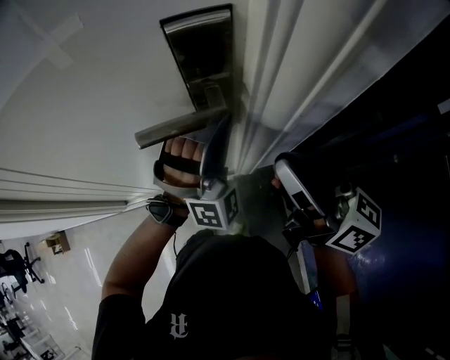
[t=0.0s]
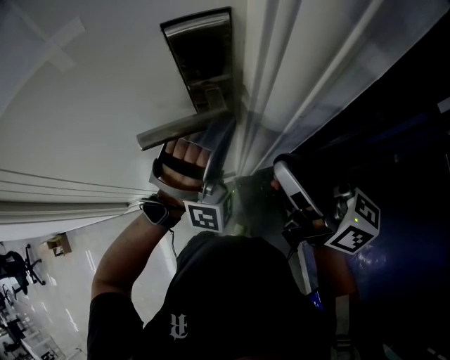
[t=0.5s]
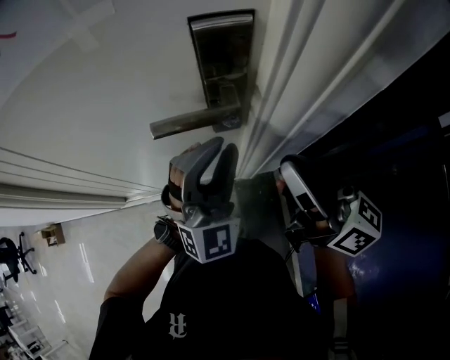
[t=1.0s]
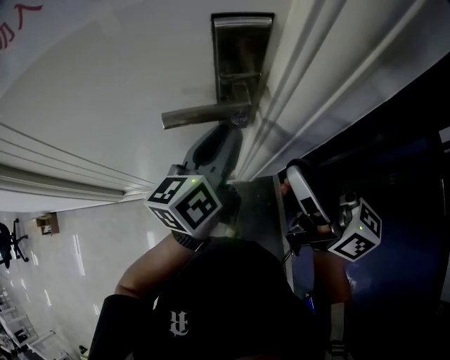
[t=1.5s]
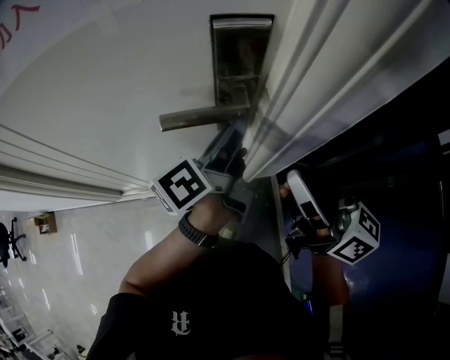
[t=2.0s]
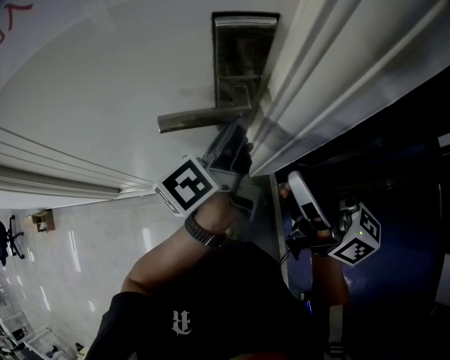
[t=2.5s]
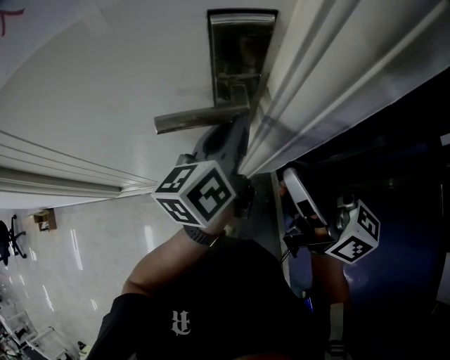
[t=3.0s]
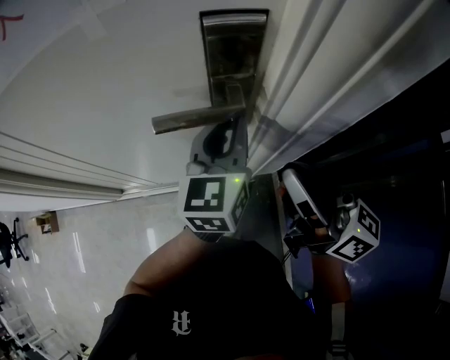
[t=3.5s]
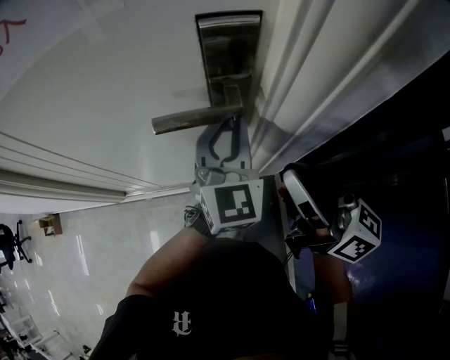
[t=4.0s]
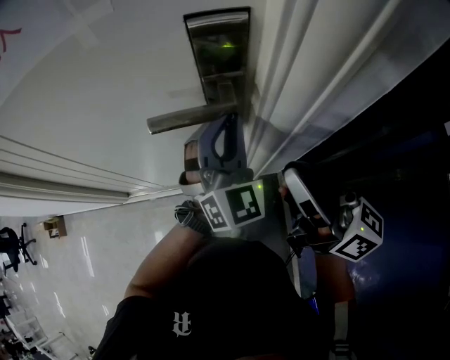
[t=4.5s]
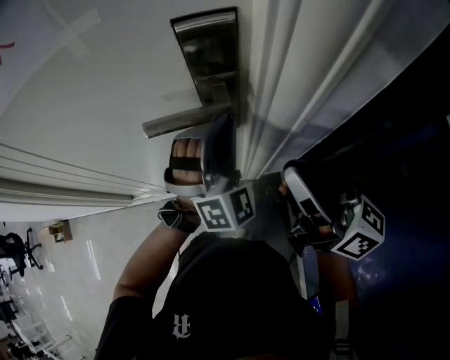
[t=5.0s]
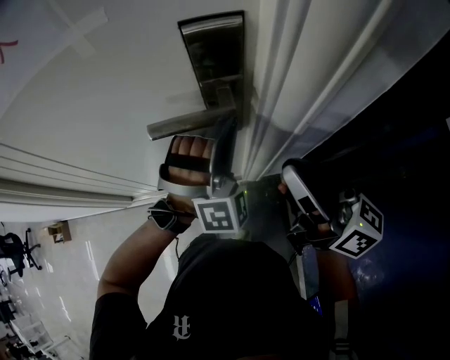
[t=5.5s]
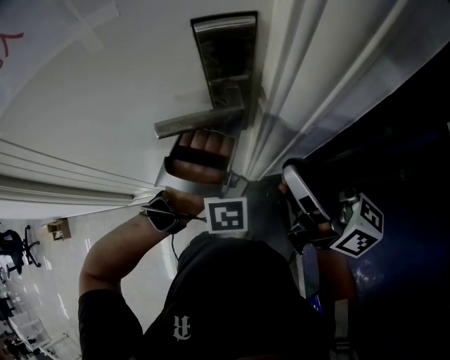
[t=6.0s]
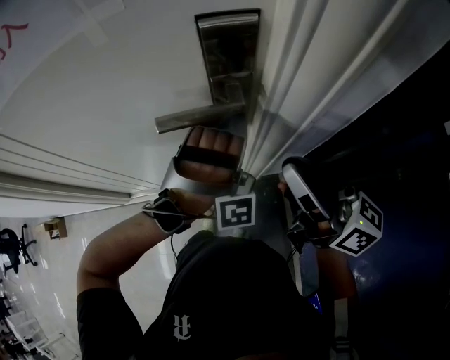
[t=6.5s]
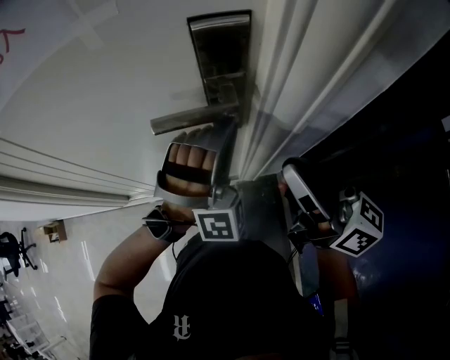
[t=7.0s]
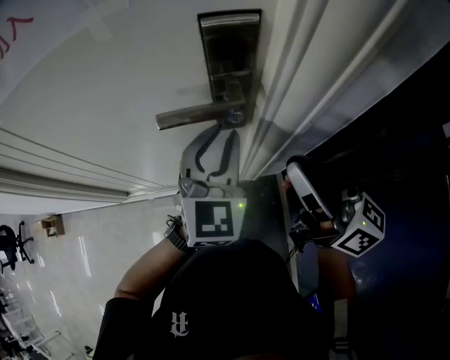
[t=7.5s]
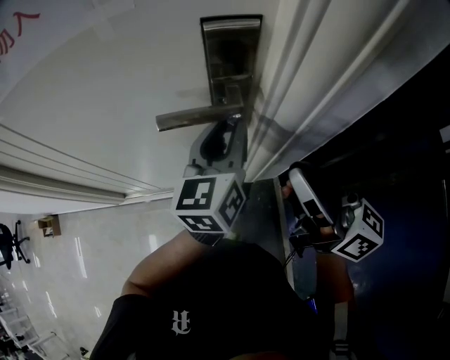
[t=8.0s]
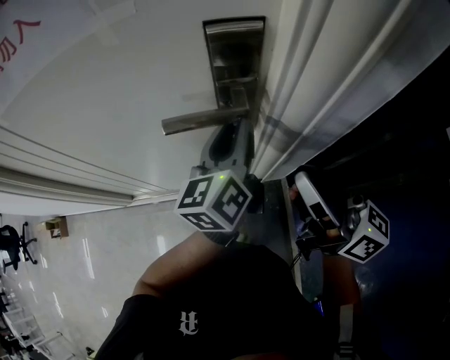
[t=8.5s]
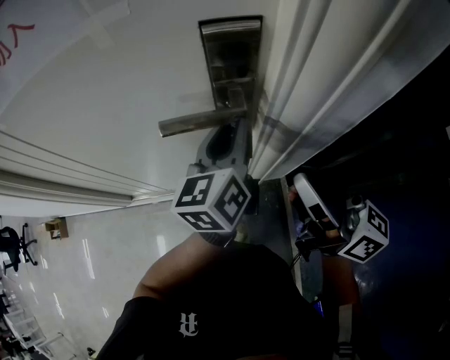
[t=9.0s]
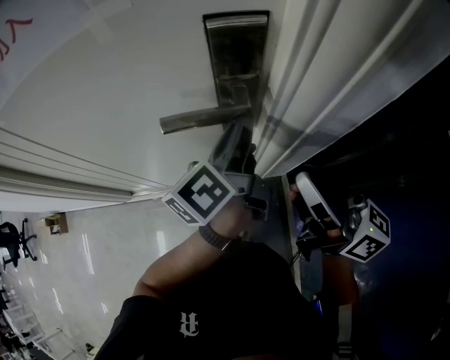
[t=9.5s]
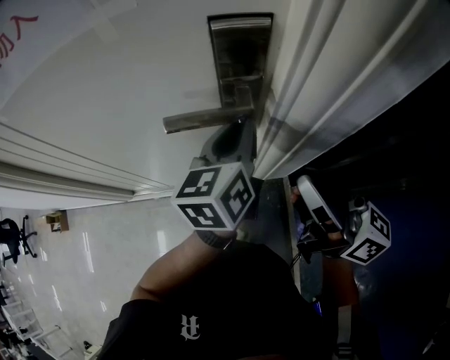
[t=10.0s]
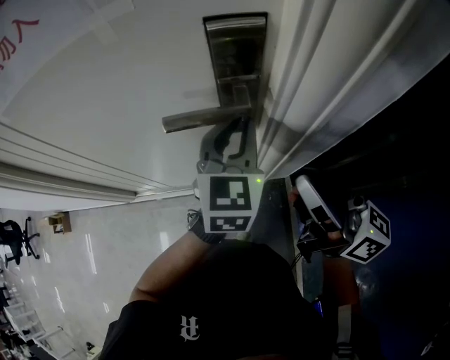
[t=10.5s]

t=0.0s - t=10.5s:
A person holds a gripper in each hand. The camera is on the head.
t=0.0s - t=2.0s: The left gripper rotates around the line of its fingers by about 150 degrees, counterclockwise from behind.
t=2.0s - t=4.0s: The left gripper rotates around the line of its fingers by approximately 80 degrees, clockwise from behind.
t=4.0s - t=6.5s: The left gripper twists roughly 90 degrees clockwise, seen from behind.
t=6.5s - t=8.5s: The left gripper twists roughly 140 degrees counterclockwise, seen from behind.
t=8.5s - t=10.5s: The left gripper turns by some 40 degrees.

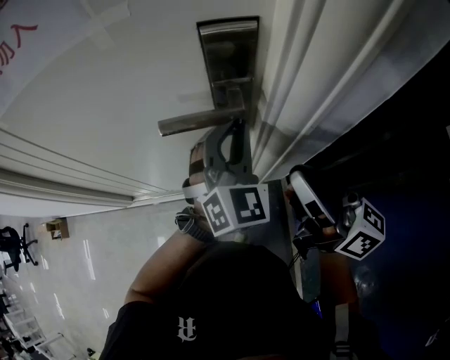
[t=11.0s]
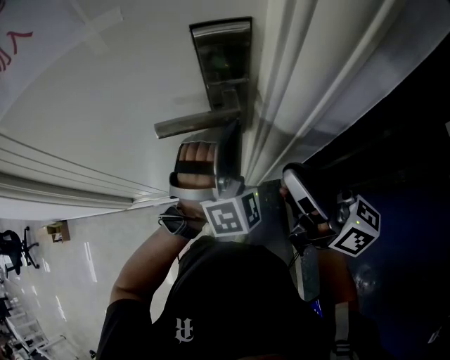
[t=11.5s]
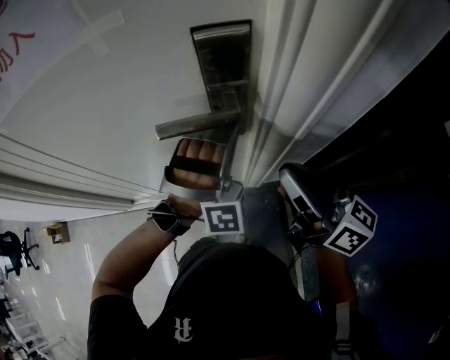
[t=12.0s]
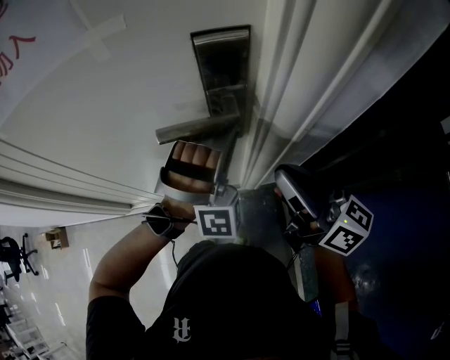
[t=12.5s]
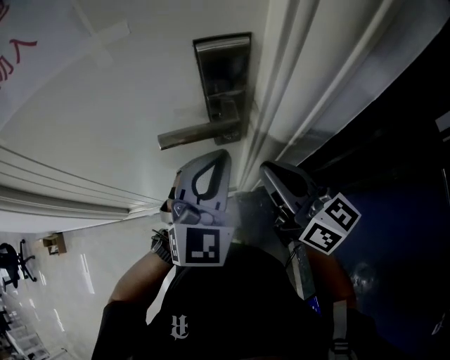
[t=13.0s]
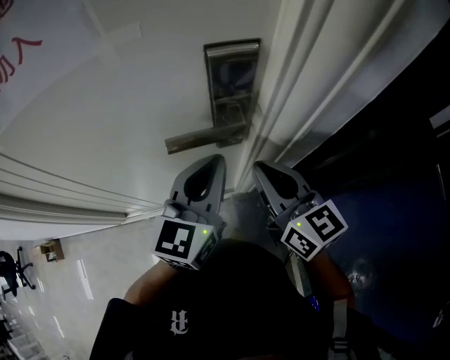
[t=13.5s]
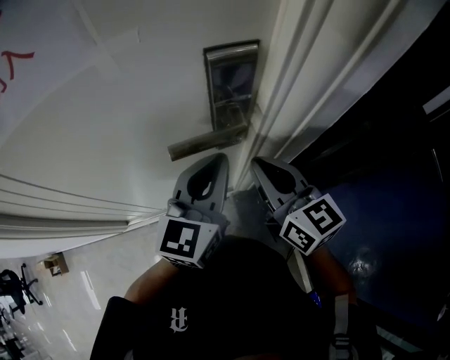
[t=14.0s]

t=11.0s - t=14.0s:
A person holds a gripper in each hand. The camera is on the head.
t=11.0s - t=12.5s: The left gripper twists roughly 60 degrees clockwise, seen from behind.
t=12.5s - t=14.0s: The left gripper travels to the left by roughly 5 cm, and twists roughly 90 degrees counterclockwise, seen from behind; the right gripper ends up roughly 5 cm from where it was, and changes its angle by approximately 30 degrees.

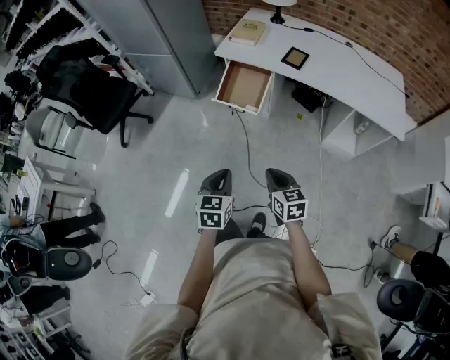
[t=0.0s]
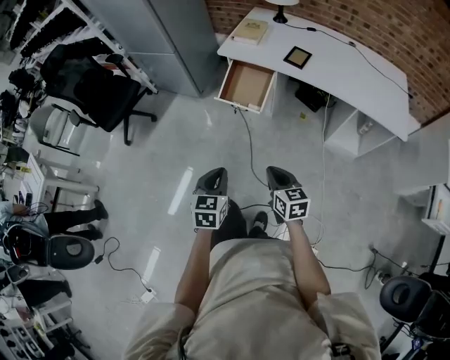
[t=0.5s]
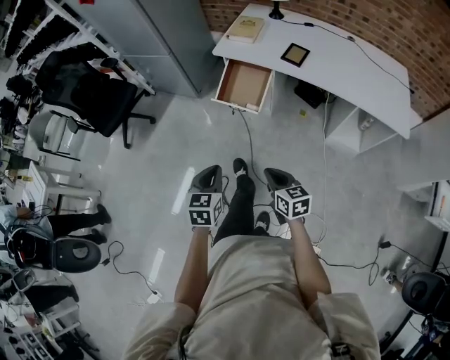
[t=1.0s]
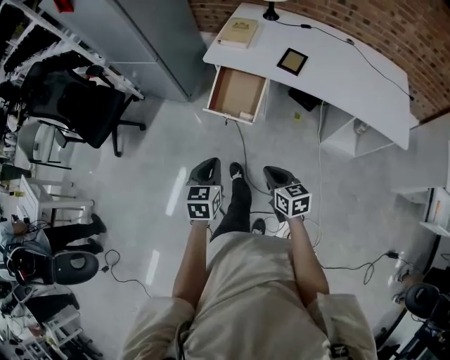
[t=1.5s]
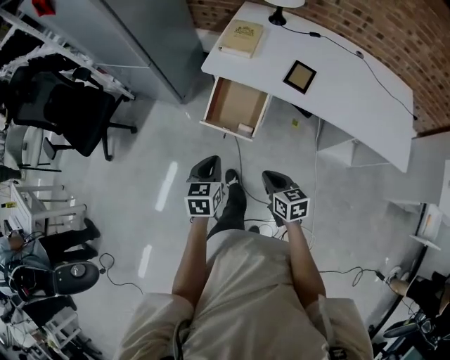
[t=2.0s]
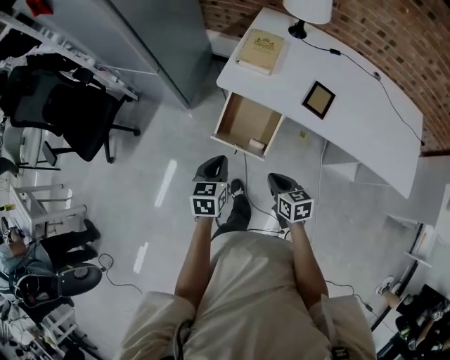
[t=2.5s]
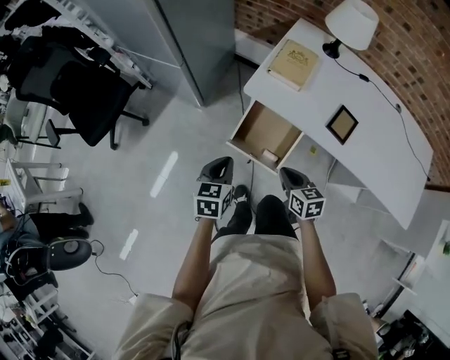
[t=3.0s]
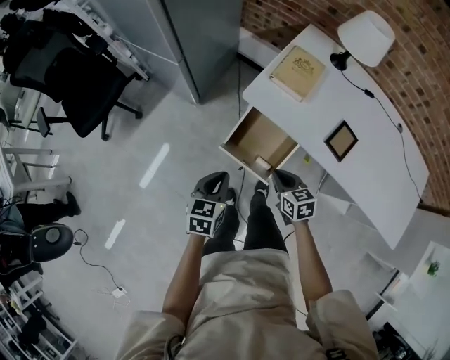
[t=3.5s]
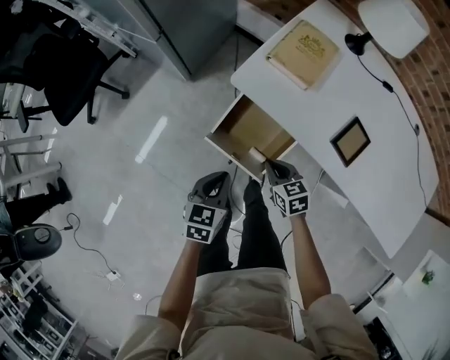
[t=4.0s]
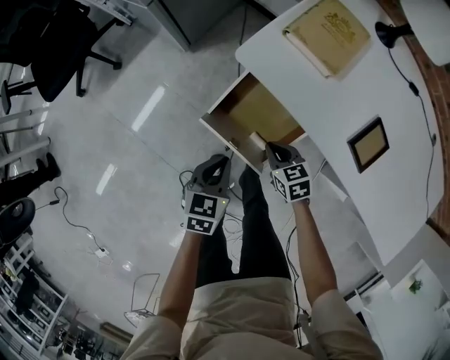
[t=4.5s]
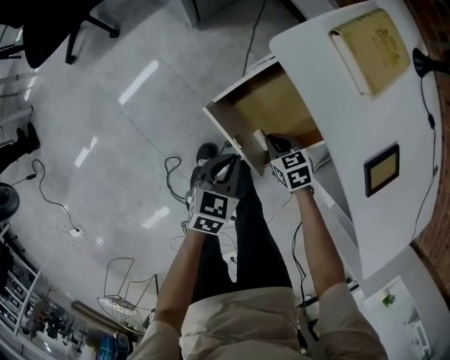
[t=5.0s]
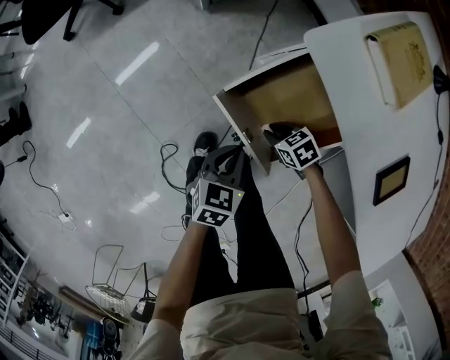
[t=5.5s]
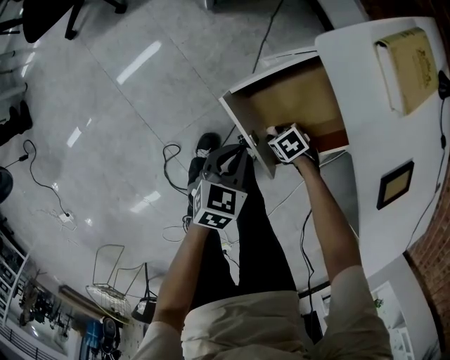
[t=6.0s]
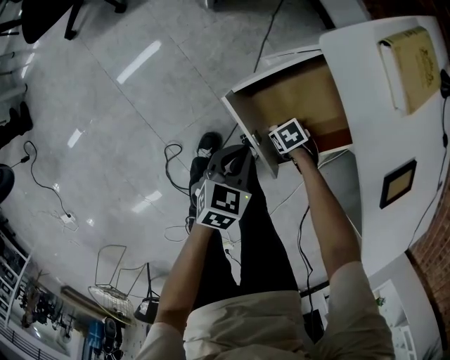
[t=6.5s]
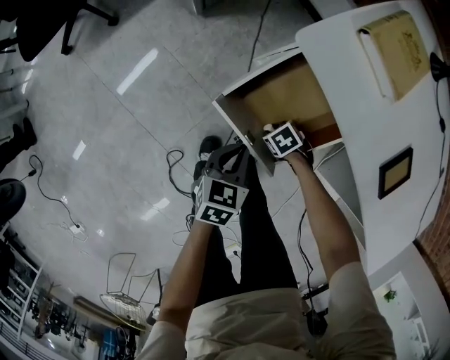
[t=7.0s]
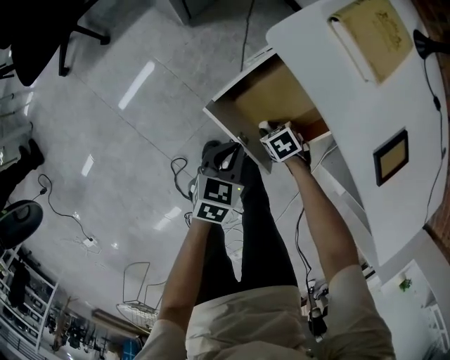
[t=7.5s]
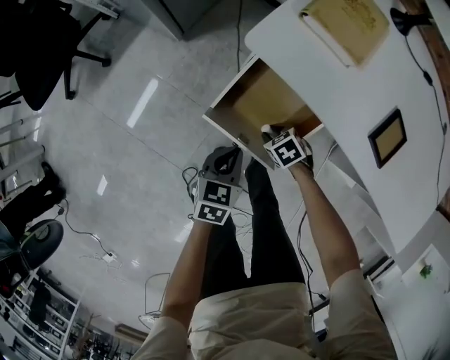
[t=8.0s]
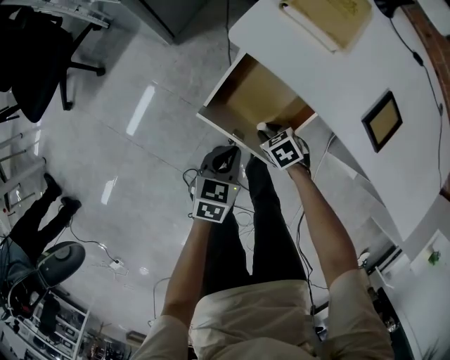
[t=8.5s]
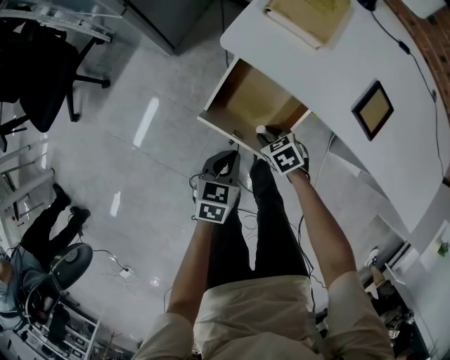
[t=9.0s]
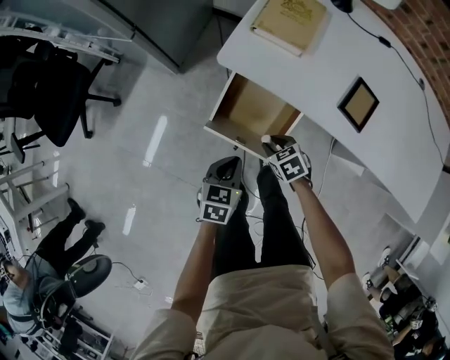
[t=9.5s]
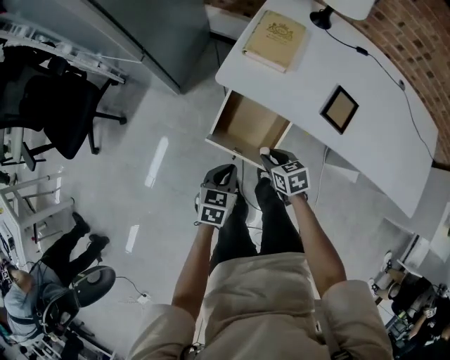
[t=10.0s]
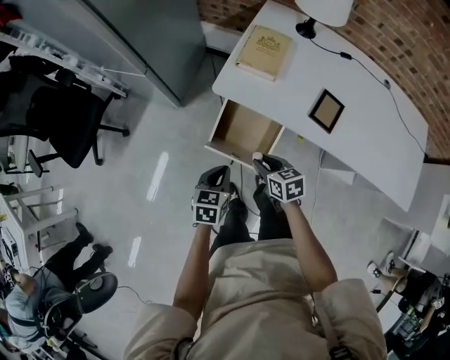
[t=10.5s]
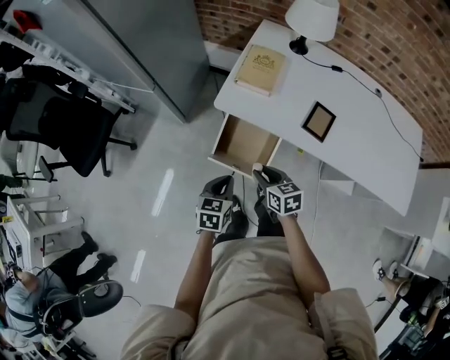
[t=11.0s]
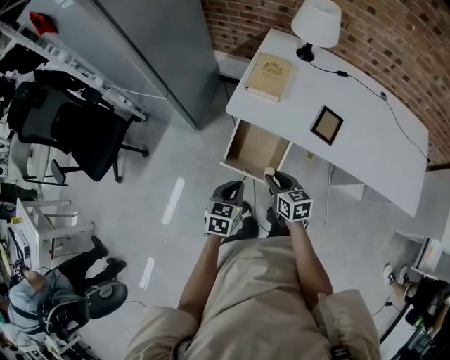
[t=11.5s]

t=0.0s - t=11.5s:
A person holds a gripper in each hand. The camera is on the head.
t=0.0s - t=2.0s: Both grippers travel together forward, roughly 25 cm.
t=2.0s - t=4.0s: The grippers both shift forward and downward by some 30 cm. The right gripper changes its angle by about 30 degrees.
t=4.0s - t=6.0s: The left gripper goes roughly 20 cm downward, while the right gripper travels downward by approximately 30 cm, turns by roughly 60 degrees, and opens.
t=6.0s - t=7.5s: The grippers move only a little.
t=7.5s - t=9.5s: The right gripper moves upward, about 20 cm, and rotates roughly 30 degrees. The left gripper is displaced upward by approximately 10 cm.
t=9.5s - t=11.5s: Both grippers travel together upward, roughly 20 cm. The right gripper turns by some 40 degrees.

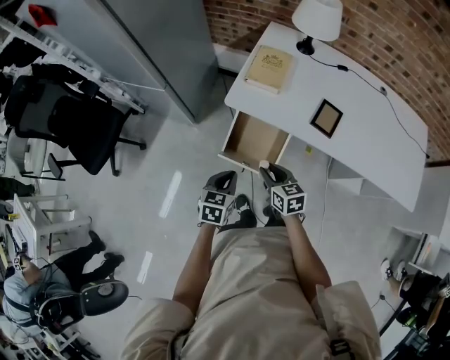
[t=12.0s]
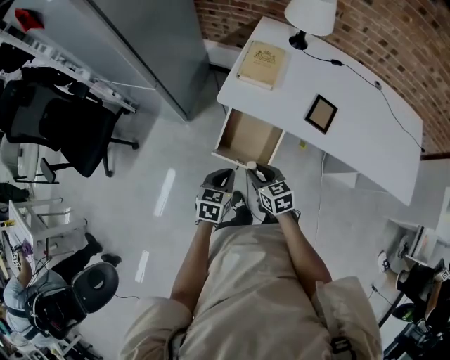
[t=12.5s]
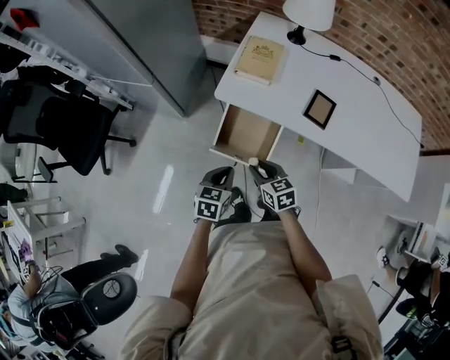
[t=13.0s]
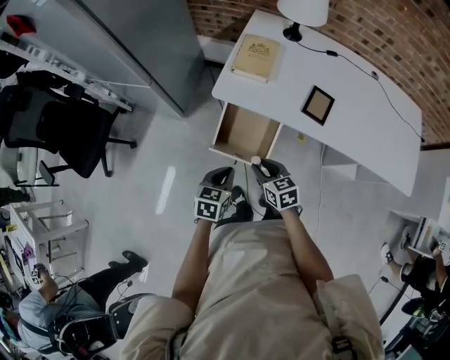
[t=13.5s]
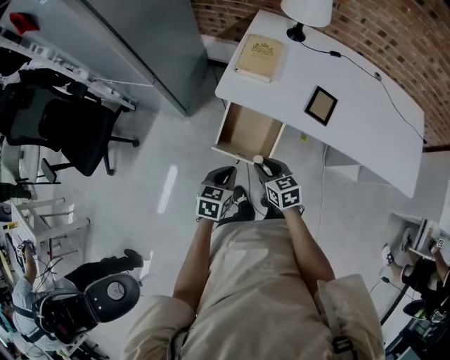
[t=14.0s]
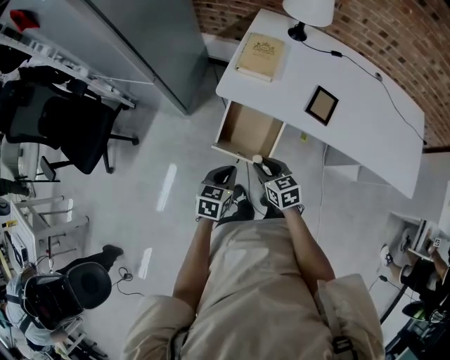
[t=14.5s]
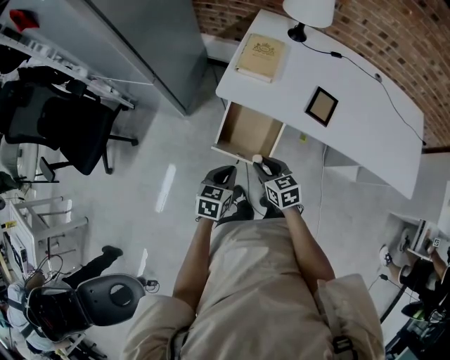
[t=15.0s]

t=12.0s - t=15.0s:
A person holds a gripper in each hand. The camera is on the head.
t=12.0s - t=13.5s: The grippers stay close to where they were, moving slightly.
t=13.5s - t=15.0s: Both grippers stay about where they are.
